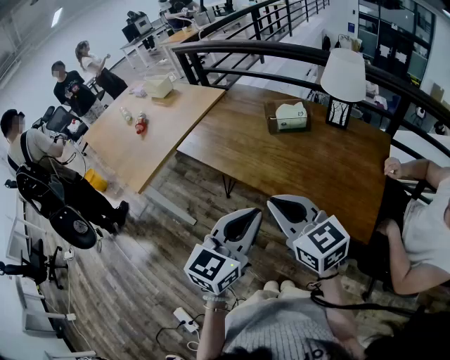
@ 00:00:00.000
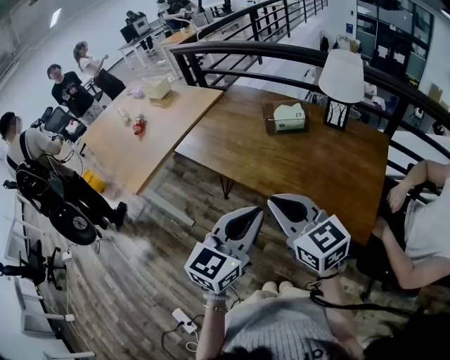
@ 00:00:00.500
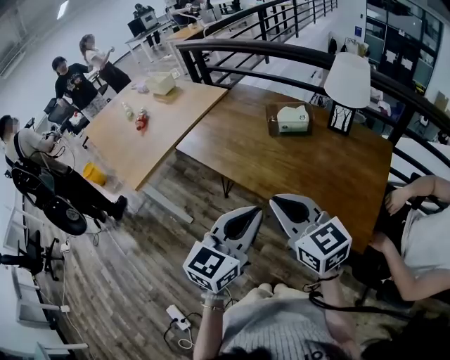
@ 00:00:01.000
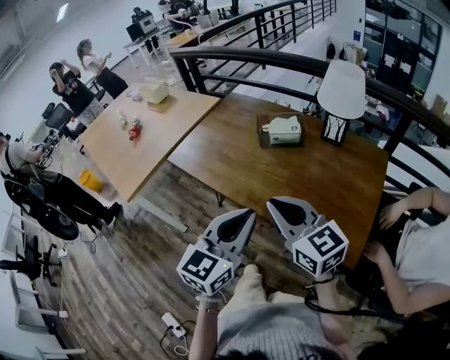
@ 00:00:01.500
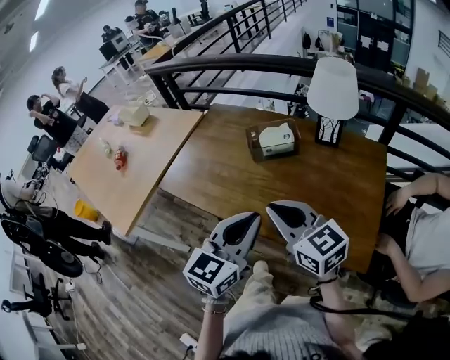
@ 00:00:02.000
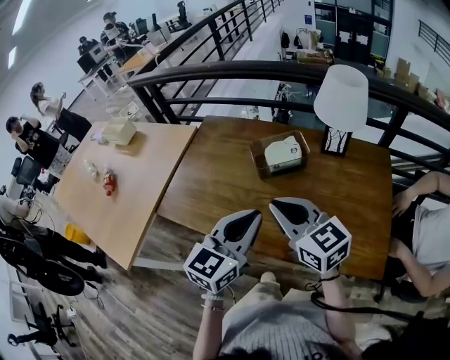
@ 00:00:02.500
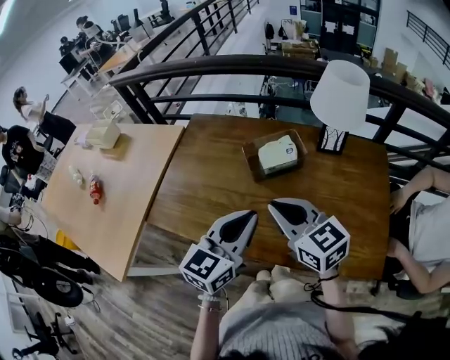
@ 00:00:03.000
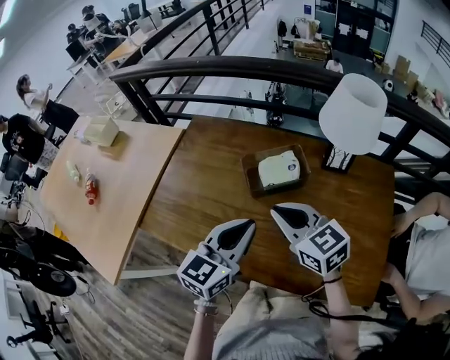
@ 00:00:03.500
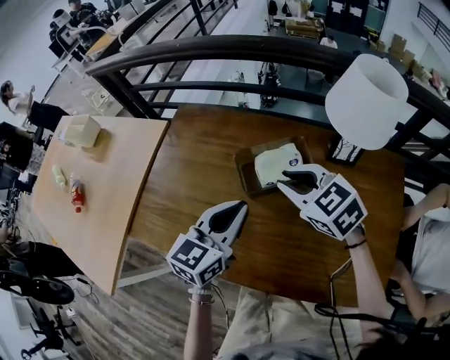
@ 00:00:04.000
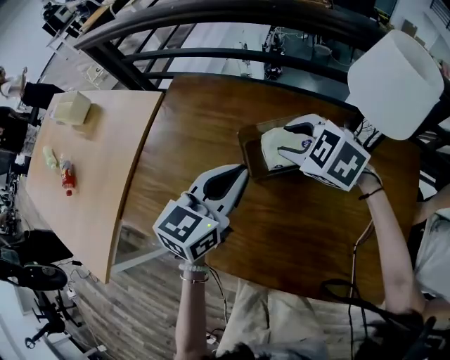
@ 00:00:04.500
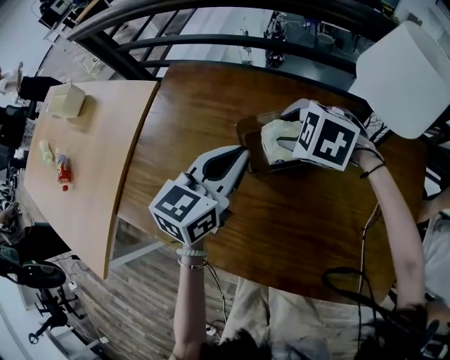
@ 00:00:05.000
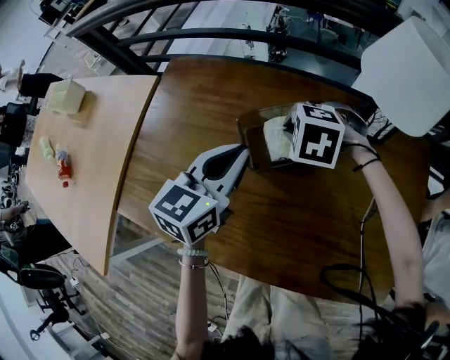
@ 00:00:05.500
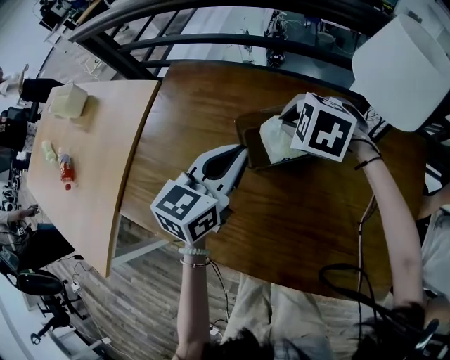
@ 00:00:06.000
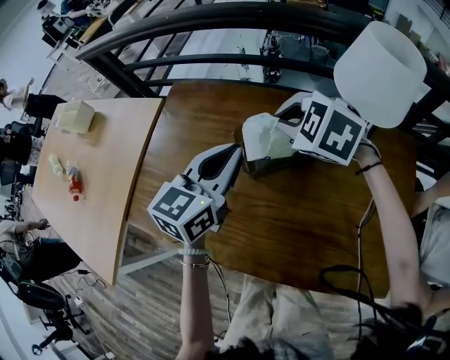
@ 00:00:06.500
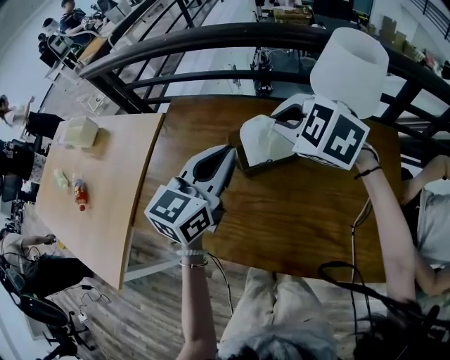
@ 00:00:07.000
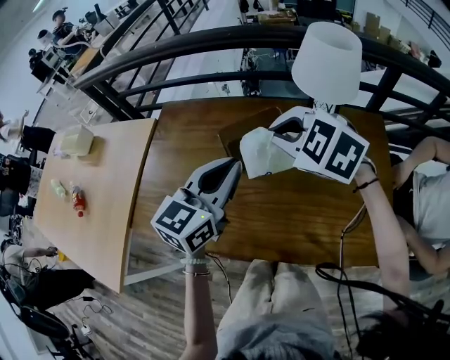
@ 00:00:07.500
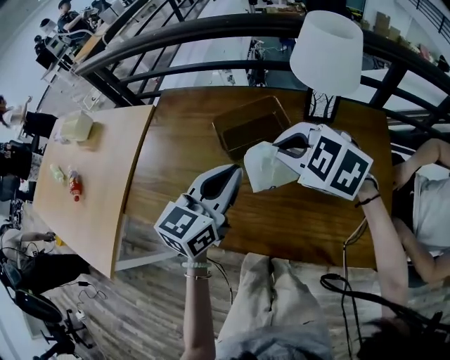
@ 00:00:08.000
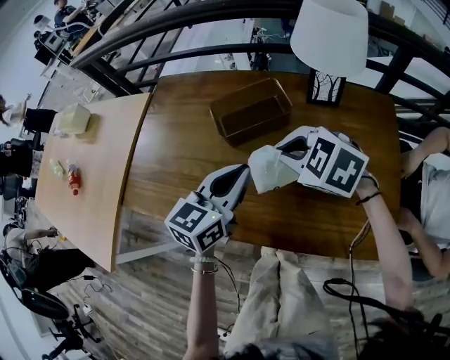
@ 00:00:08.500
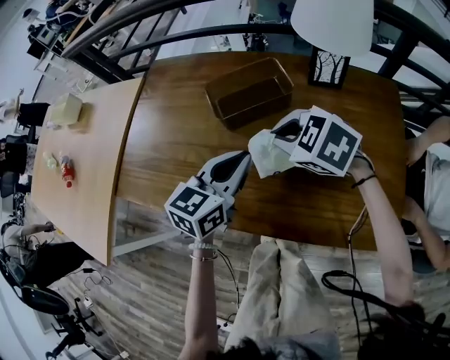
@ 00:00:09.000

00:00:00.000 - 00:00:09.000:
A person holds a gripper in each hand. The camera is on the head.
00:00:00.000 - 00:00:02.000: Both grippers travel together forward, about 15 cm.
00:00:02.000 - 00:00:04.500: The left gripper is displaced forward by roughly 30 cm; the right gripper travels forward and downward by roughly 35 cm, tips its fingers downward by approximately 40 degrees, and opens up.
00:00:04.500 - 00:00:07.000: Both grippers travel together upward, some 10 cm. The right gripper closes its fingers.
00:00:07.000 - 00:00:09.000: Both grippers travel together downward and backward, some 20 cm.

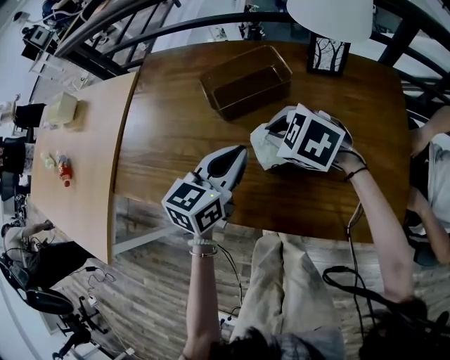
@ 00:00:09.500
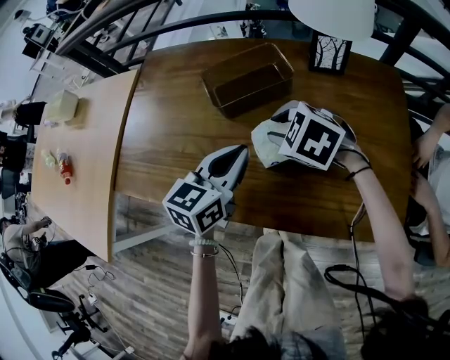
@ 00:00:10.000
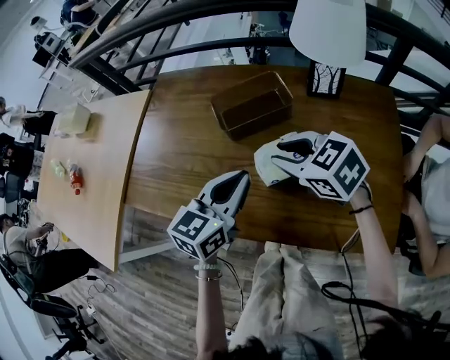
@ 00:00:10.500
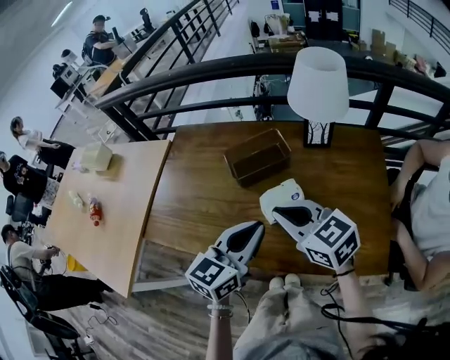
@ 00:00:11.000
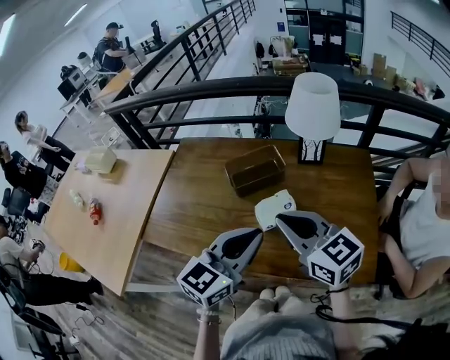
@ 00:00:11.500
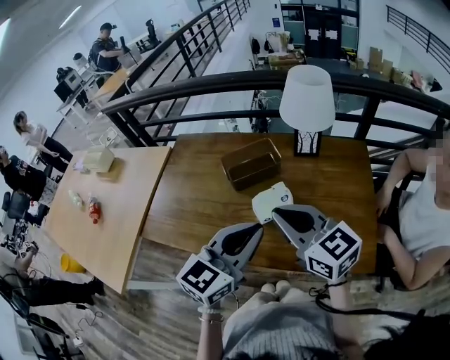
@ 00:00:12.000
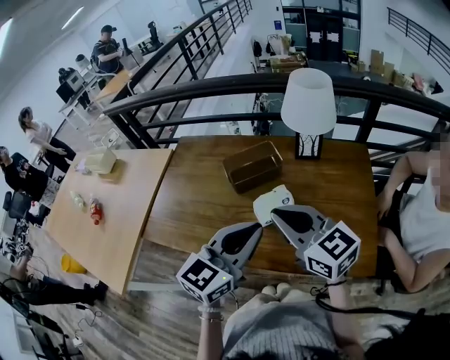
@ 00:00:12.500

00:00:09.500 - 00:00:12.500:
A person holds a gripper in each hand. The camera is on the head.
00:00:09.500 - 00:00:11.000: Both grippers travel together upward and backward, approximately 15 cm. The right gripper angles its fingers upward, by approximately 30 degrees, and opens, then closes once more.
00:00:11.000 - 00:00:12.500: The two grippers go some 10 cm upward.

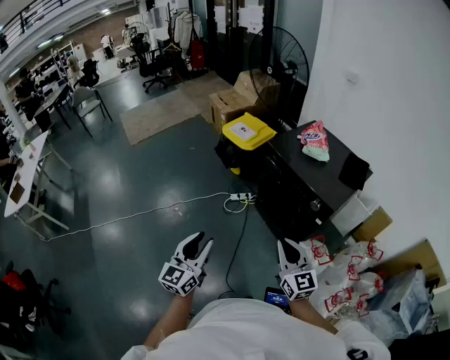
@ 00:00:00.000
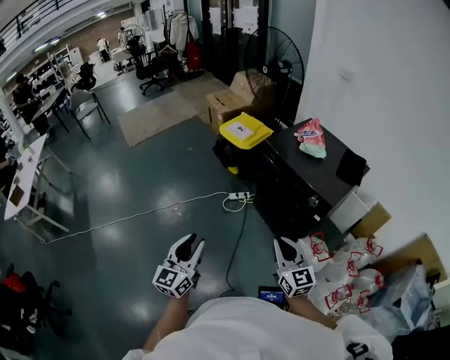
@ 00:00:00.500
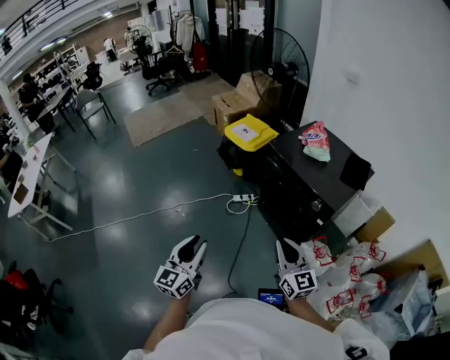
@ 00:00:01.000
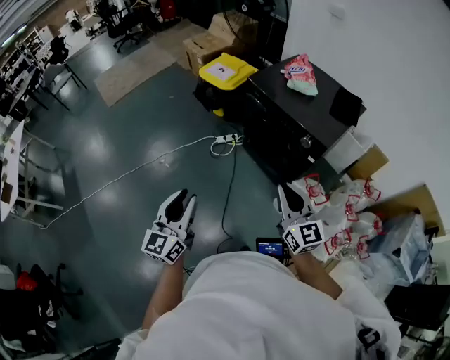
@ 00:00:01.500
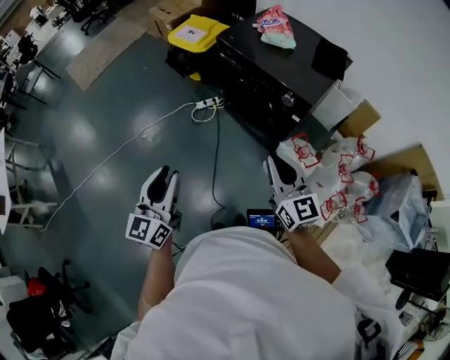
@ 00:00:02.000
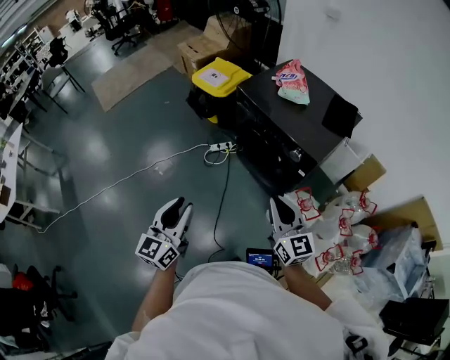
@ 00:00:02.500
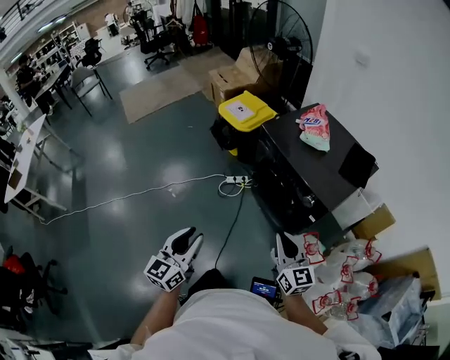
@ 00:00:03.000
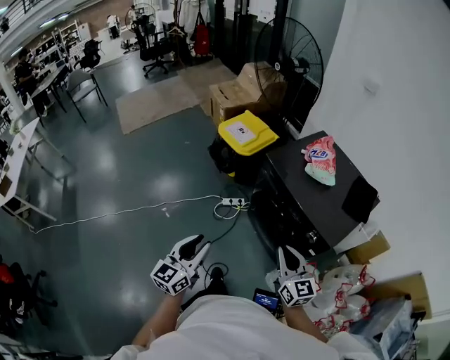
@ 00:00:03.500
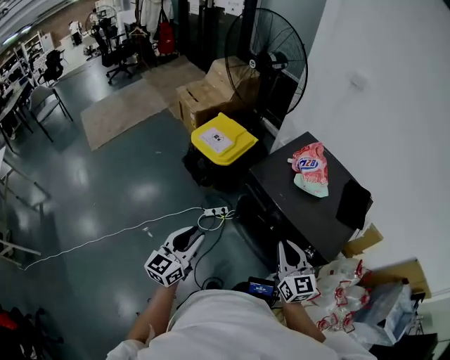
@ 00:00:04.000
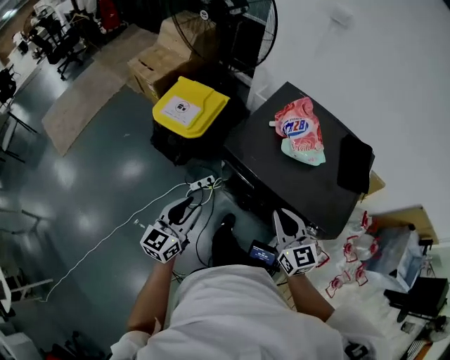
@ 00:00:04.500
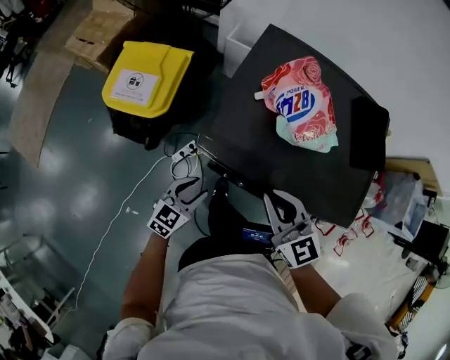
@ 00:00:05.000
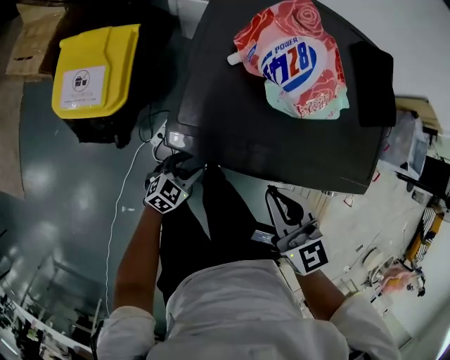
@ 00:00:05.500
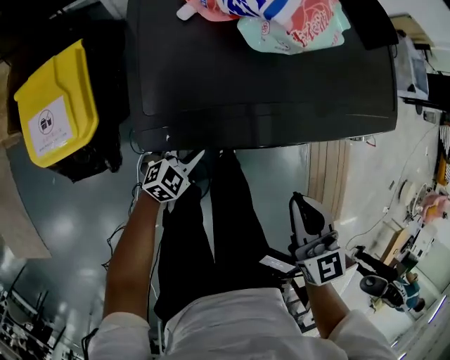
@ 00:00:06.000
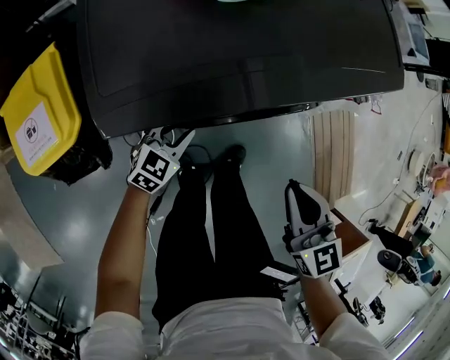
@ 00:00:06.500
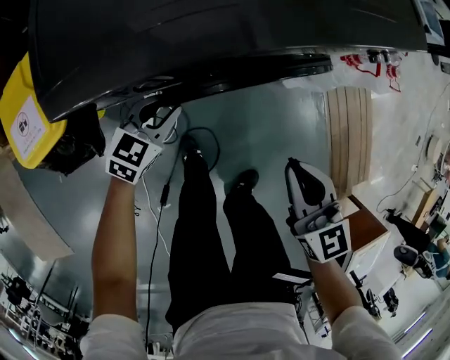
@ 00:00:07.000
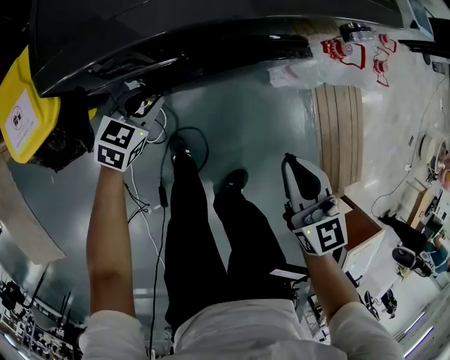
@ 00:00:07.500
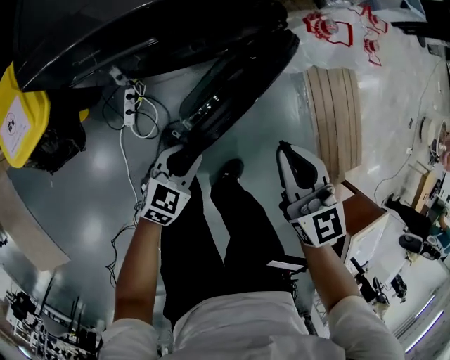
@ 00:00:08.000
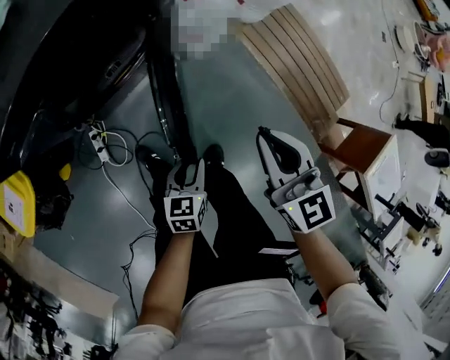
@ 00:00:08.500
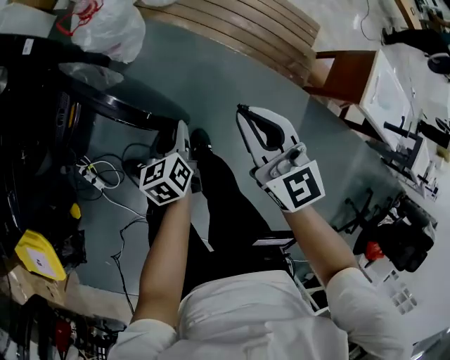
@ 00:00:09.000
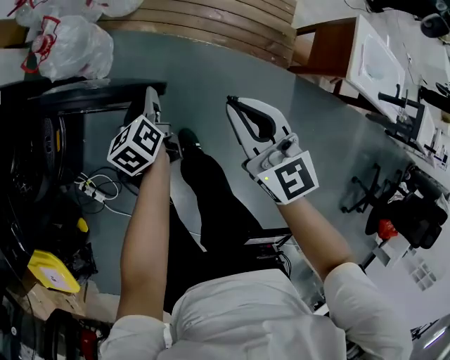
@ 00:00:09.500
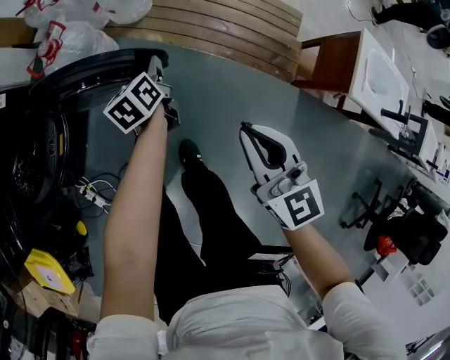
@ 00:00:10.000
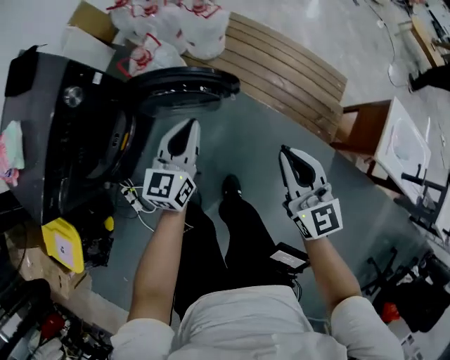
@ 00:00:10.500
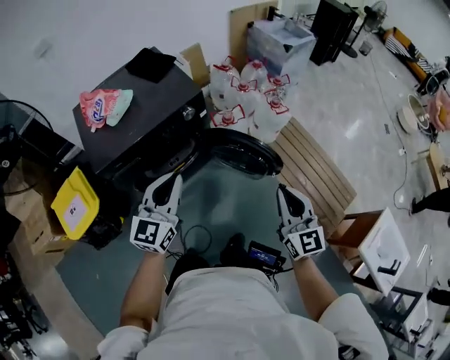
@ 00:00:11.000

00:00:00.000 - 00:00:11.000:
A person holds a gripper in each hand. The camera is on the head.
00:00:00.000 - 00:00:02.000: The right gripper goes about 10 cm to the right. Meanwhile the left gripper travels to the right by some 5 cm.
00:00:02.000 - 00:00:03.500: The grippers both shift forward by approximately 15 cm.
00:00:03.500 - 00:00:05.500: The left gripper moves roughly 60 cm, and angles its fingers downward, by roughly 40 degrees; the right gripper changes place by about 40 cm, and changes its angle by roughly 30 degrees.
00:00:05.500 - 00:00:07.500: The left gripper moves downward, about 5 cm. Meanwhile the right gripper changes place by about 25 cm, and turns by some 40 degrees.
00:00:07.500 - 00:00:09.000: The right gripper ends up approximately 40 cm from where it was, and swivels about 40 degrees; the left gripper moves roughly 50 cm, and turns by about 30 degrees.
00:00:09.000 - 00:00:11.000: The left gripper shifts approximately 50 cm upward, points its fingers approximately 40 degrees further upward, and closes its fingers, while the right gripper shifts approximately 25 cm upward, and rotates approximately 20 degrees.

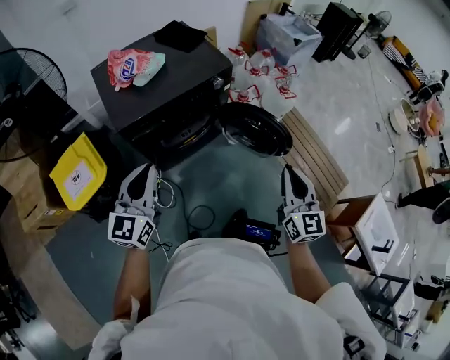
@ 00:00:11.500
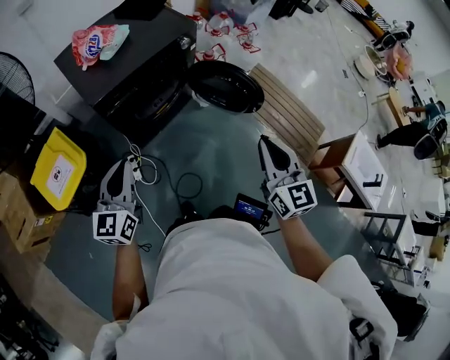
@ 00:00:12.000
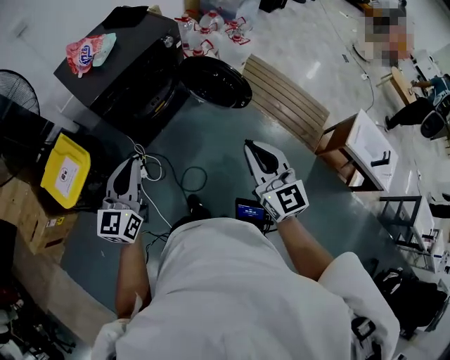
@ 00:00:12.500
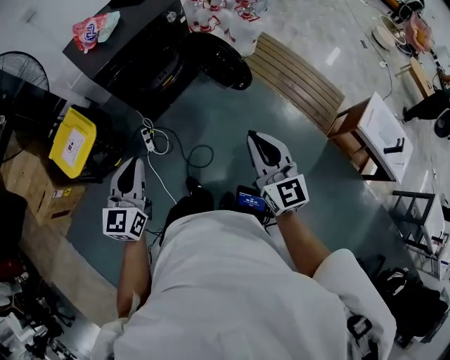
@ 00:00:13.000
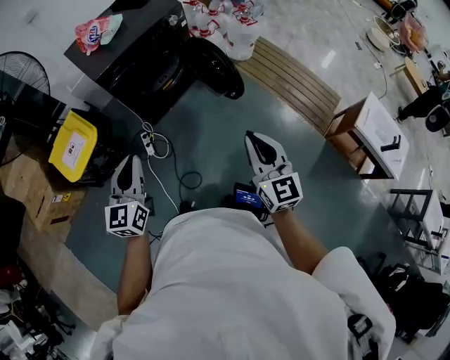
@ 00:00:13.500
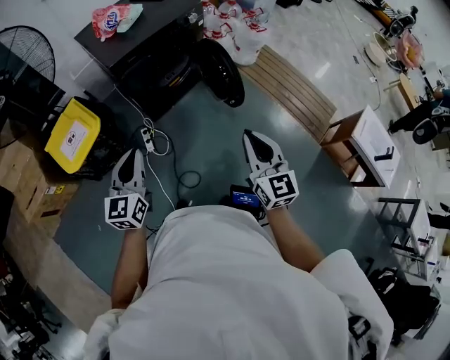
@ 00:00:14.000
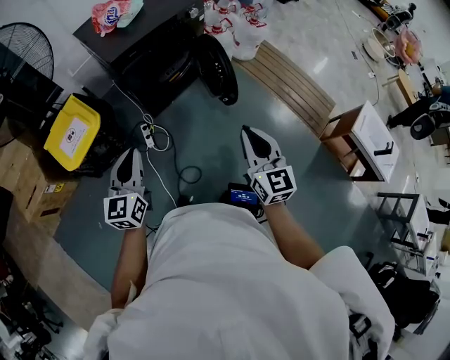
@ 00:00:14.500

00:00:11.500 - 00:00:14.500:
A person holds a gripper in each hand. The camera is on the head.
00:00:11.500 - 00:00:13.000: The two grippers go approximately 30 cm backward.
00:00:13.000 - 00:00:14.500: The two grippers go about 15 cm to the left.
